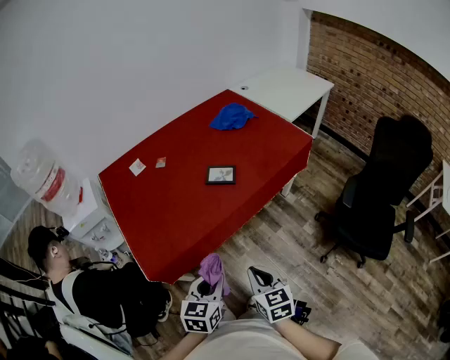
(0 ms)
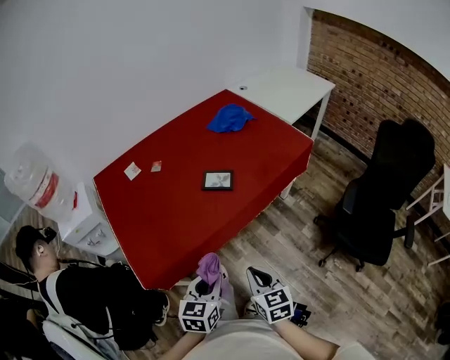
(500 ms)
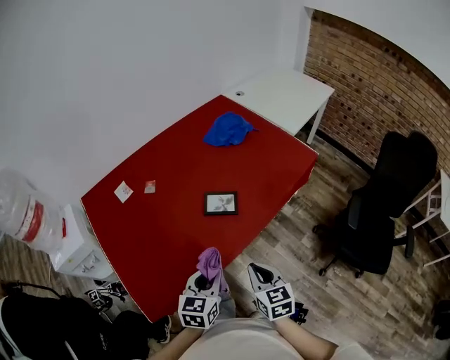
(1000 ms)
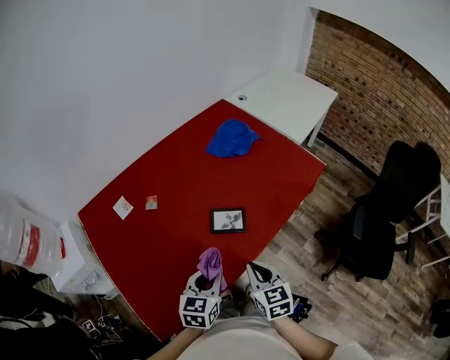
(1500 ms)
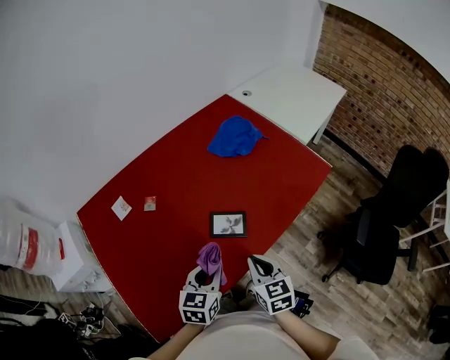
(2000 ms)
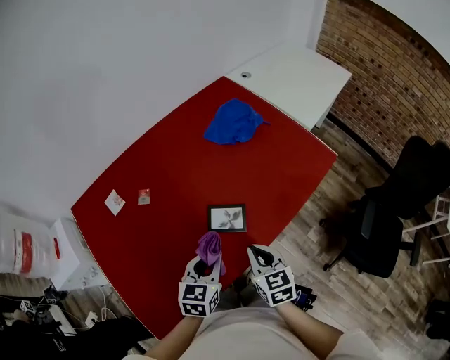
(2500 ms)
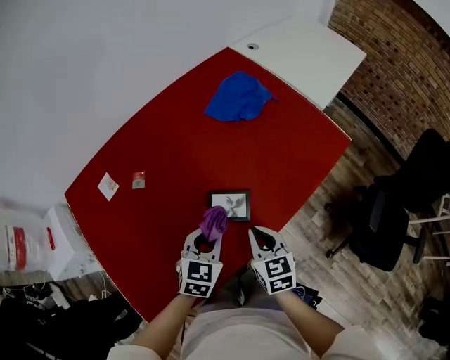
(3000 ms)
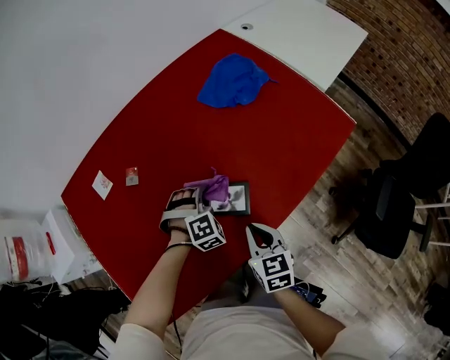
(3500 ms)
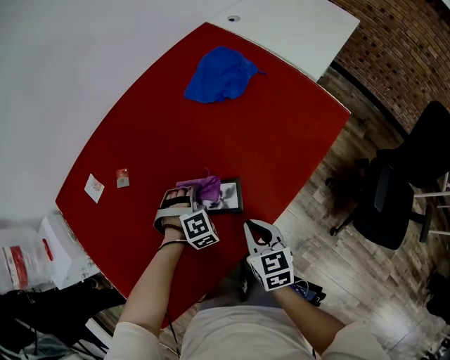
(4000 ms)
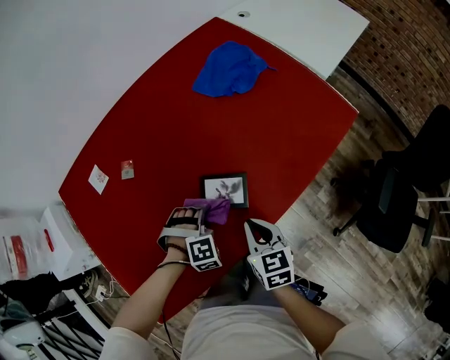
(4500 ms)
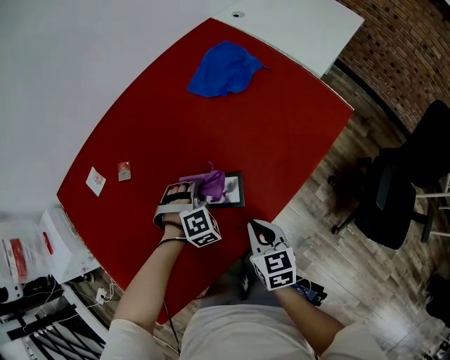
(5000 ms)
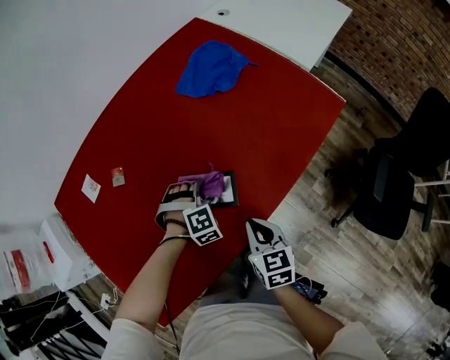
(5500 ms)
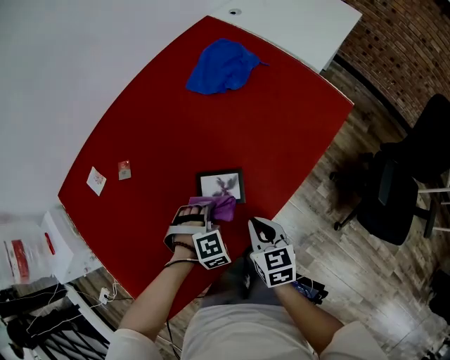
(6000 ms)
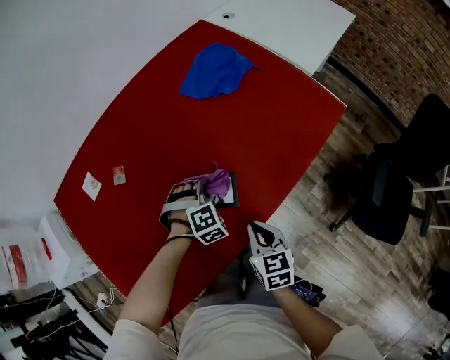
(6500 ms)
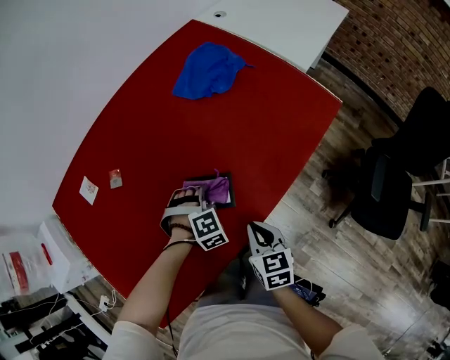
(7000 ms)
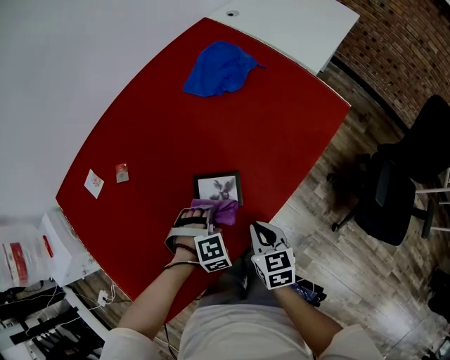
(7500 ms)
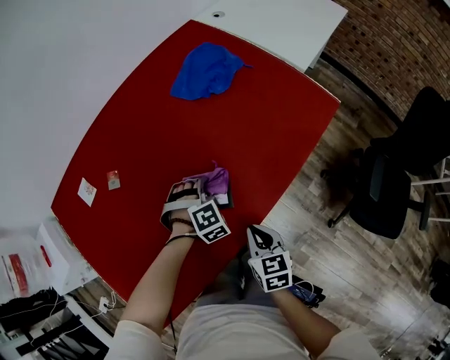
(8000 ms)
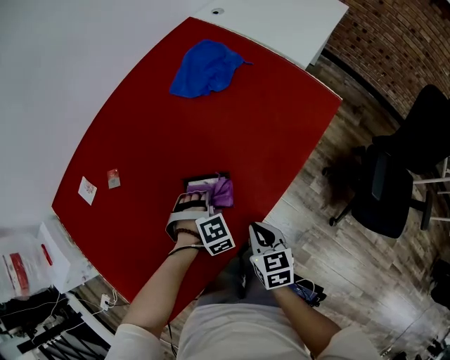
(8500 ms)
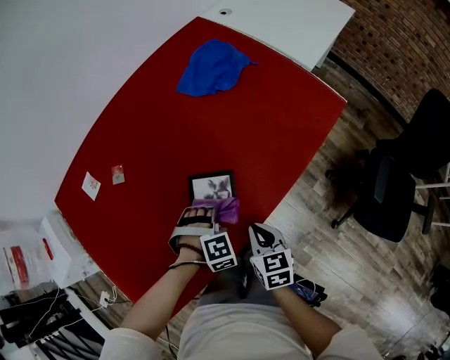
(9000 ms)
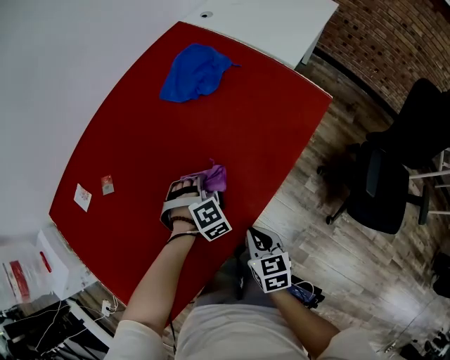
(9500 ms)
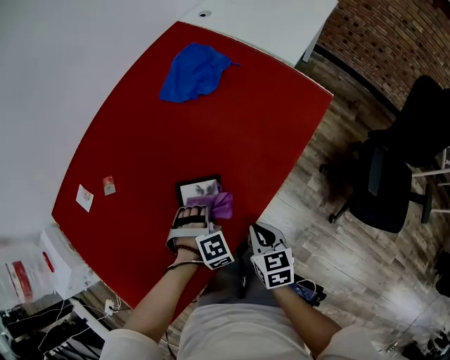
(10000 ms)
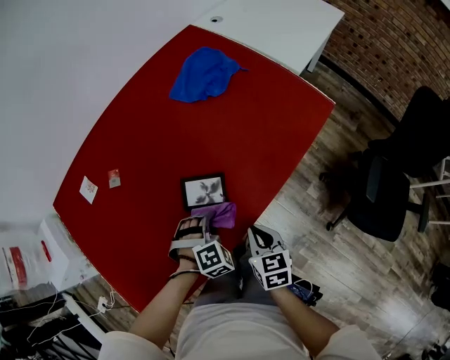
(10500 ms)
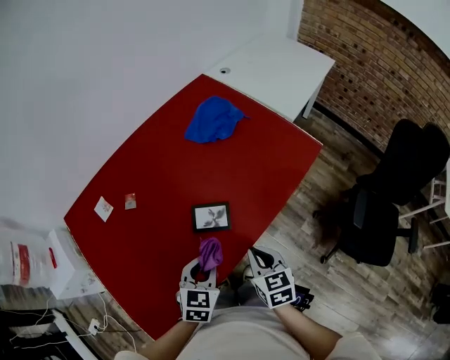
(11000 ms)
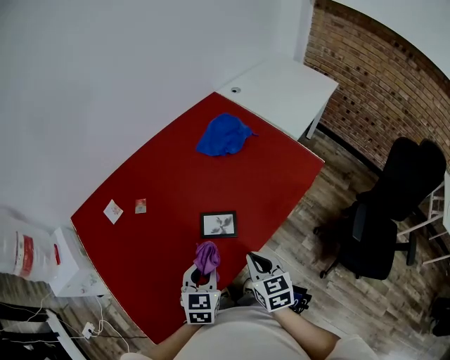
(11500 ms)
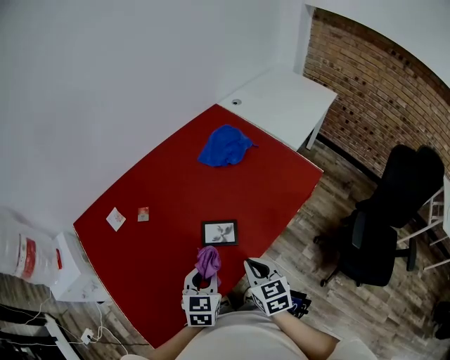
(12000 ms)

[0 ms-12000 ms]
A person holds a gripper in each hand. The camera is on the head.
0 ms to 2000 ms: The grippers both shift forward by some 35 cm.
2000 ms to 4000 ms: The left gripper heads forward and downward, covering approximately 25 cm, and rotates around the line of its fingers by about 80 degrees, clockwise from behind. The right gripper is displaced downward and forward by some 15 cm.
4000 ms to 6000 ms: The left gripper goes forward and backward, some 10 cm each way, reversing 2 times.
6000 ms to 8000 ms: The left gripper swings forward and backward, approximately 10 cm each way, with 2 reversals.
8000 ms to 10000 ms: The left gripper goes forward and backward, some 10 cm each way, reversing 2 times.
10000 ms to 12000 ms: The right gripper travels upward and to the left by about 15 cm. Meanwhile the left gripper heads upward, backward and to the left, covering roughly 25 cm, and twists roughly 80 degrees counterclockwise, seen from behind.

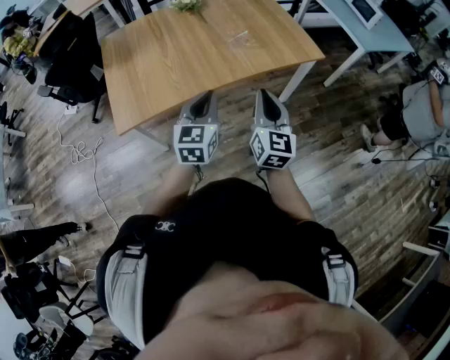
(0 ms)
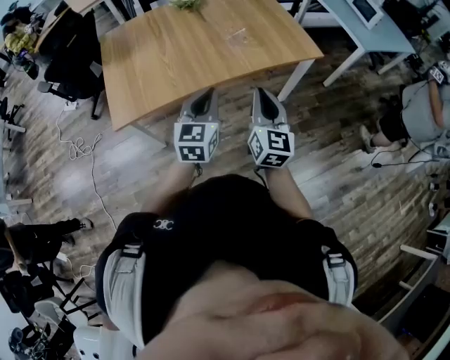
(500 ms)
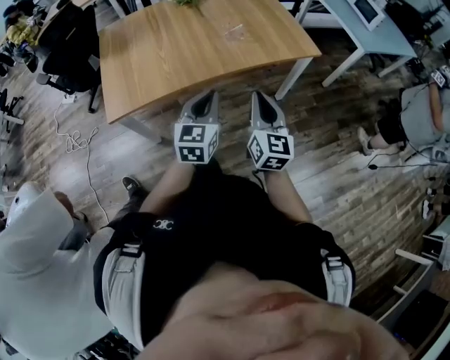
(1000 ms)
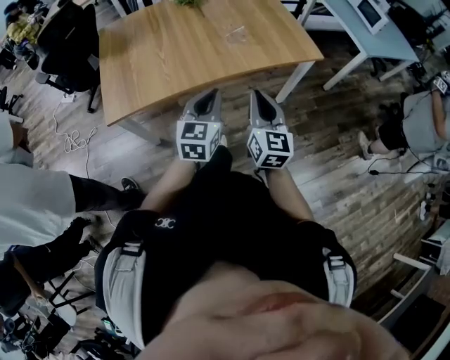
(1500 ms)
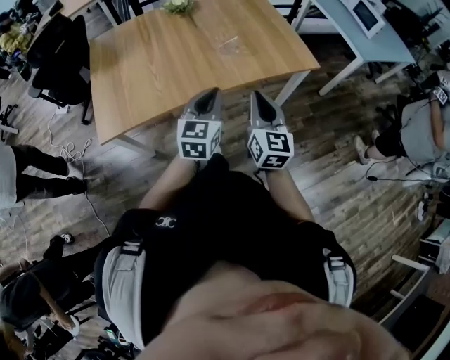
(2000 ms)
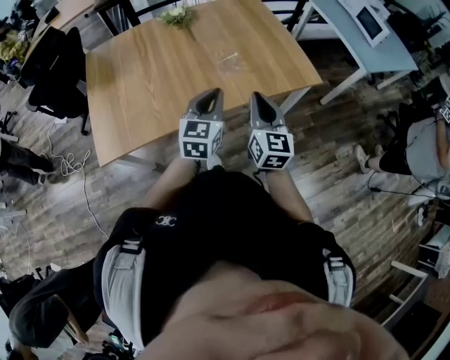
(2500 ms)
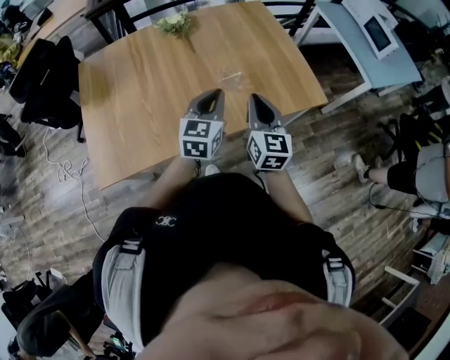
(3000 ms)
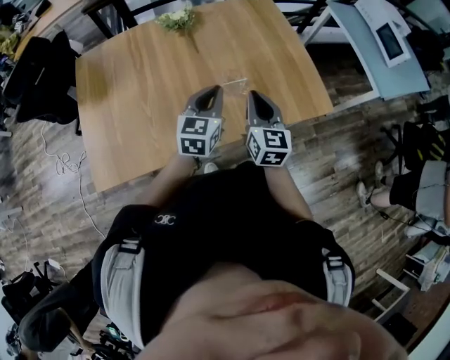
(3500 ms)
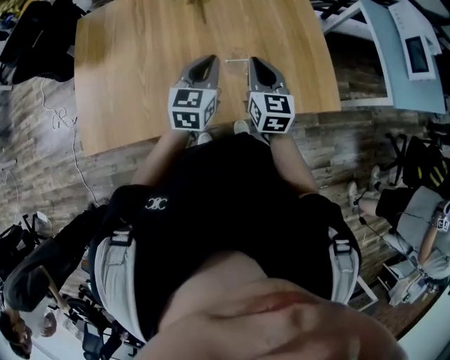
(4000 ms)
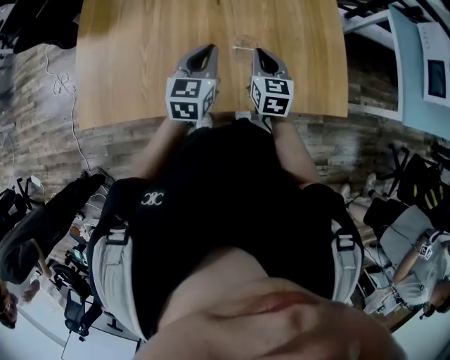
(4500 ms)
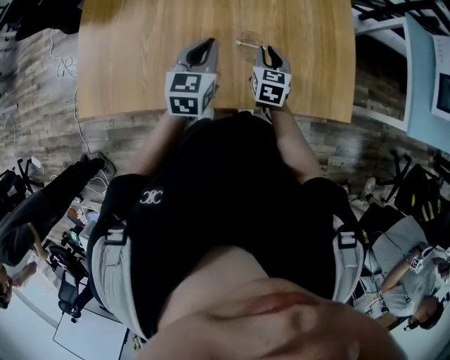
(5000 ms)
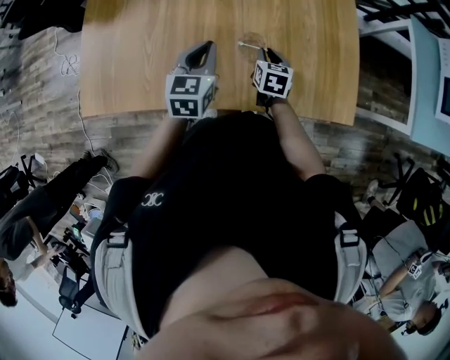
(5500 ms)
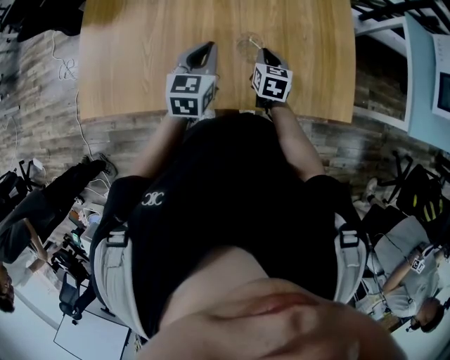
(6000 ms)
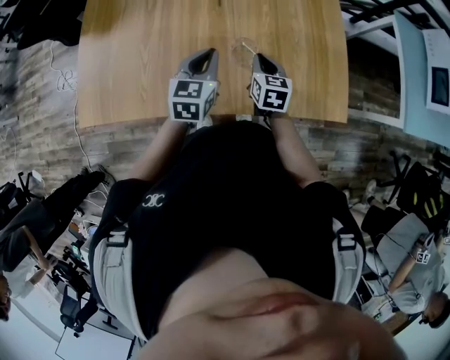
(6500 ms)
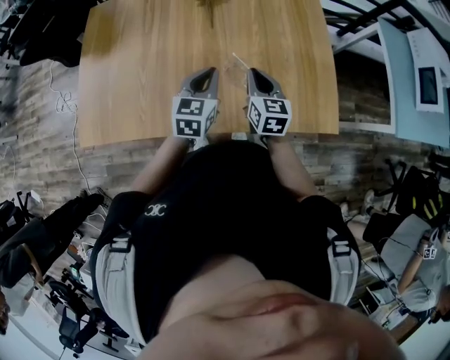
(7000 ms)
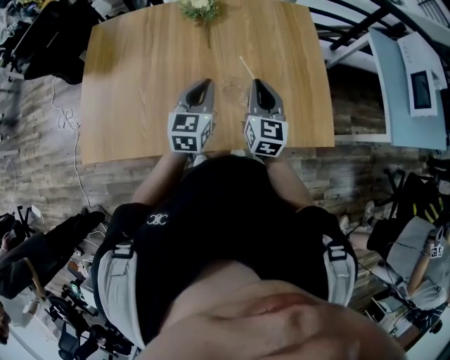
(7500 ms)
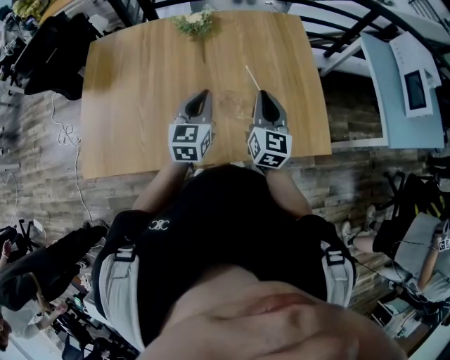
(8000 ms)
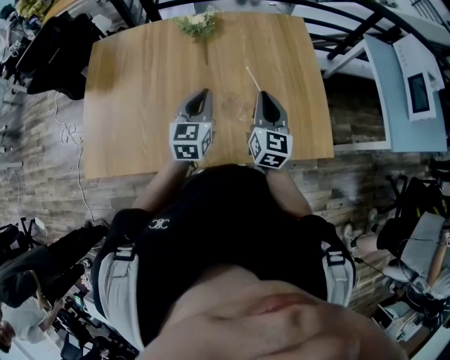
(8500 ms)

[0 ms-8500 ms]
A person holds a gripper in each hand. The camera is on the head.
0 ms to 2000 ms: The right gripper is displaced forward by approximately 10 cm. The left gripper shifts some 10 cm forward and to the right.
2000 ms to 4000 ms: Both grippers travel together forward, some 35 cm.
4000 ms to 6500 ms: The left gripper changes place by some 5 cm. Meanwhile the right gripper is displaced downward by about 15 cm.
6500 ms to 8500 ms: The left gripper changes place by some 5 cm, while the right gripper goes some 15 cm upward, and swivels about 30 degrees.

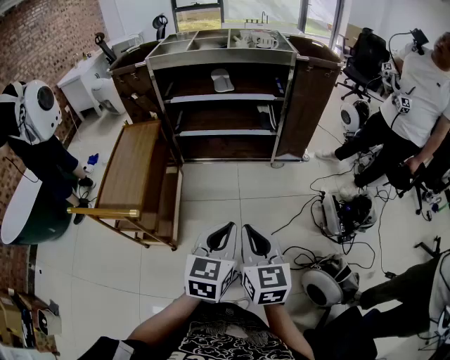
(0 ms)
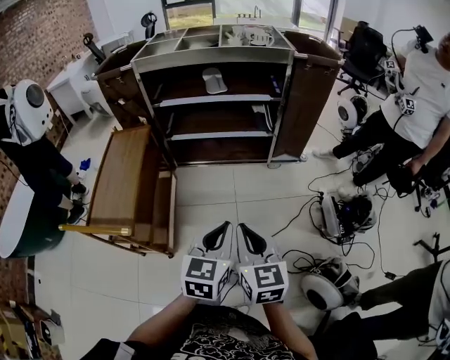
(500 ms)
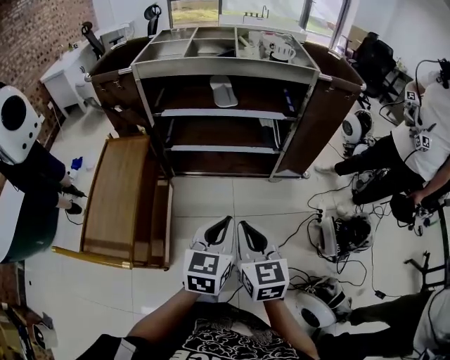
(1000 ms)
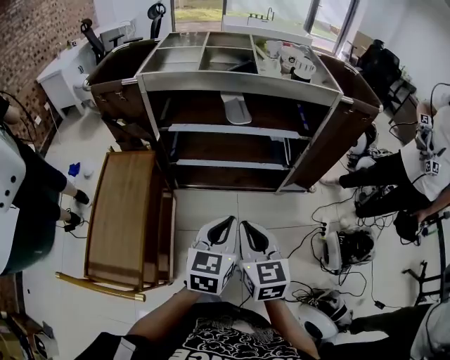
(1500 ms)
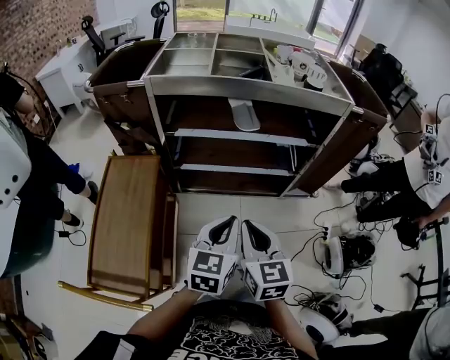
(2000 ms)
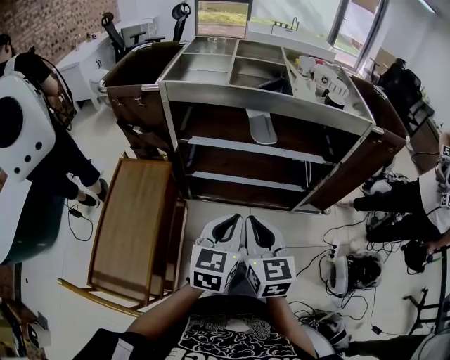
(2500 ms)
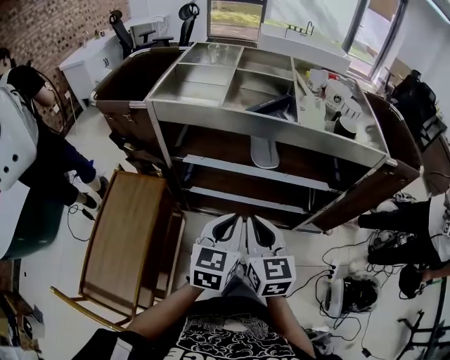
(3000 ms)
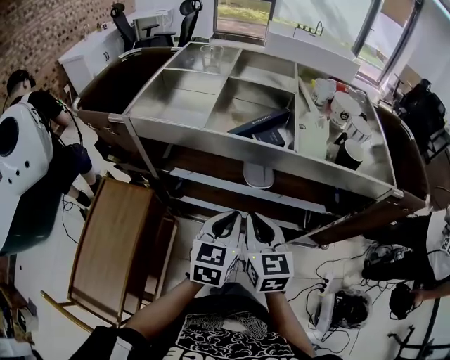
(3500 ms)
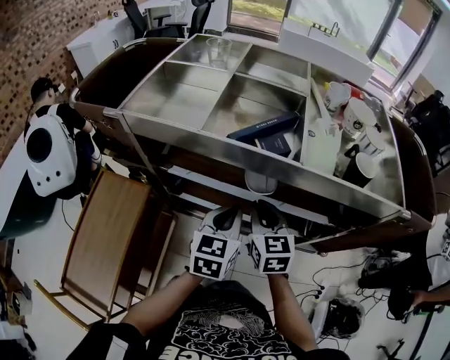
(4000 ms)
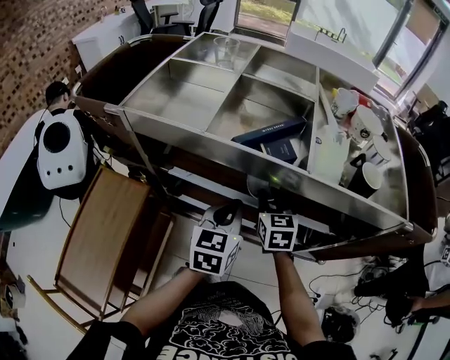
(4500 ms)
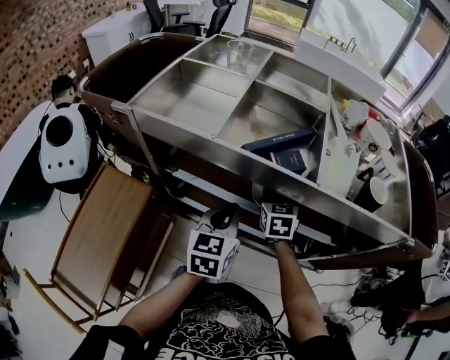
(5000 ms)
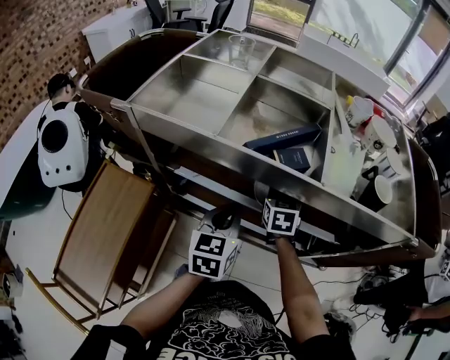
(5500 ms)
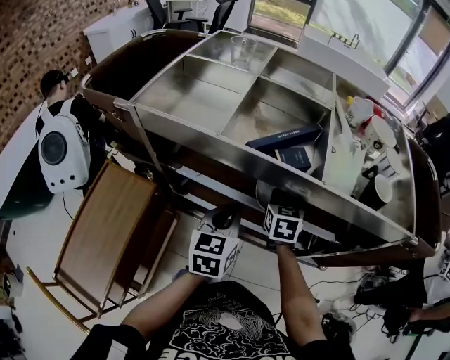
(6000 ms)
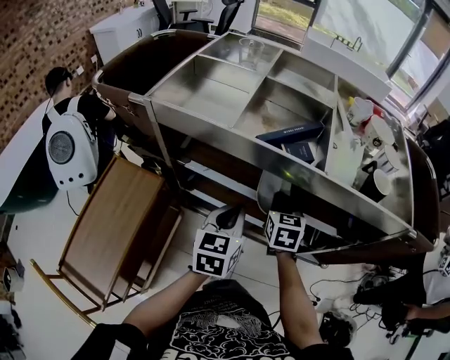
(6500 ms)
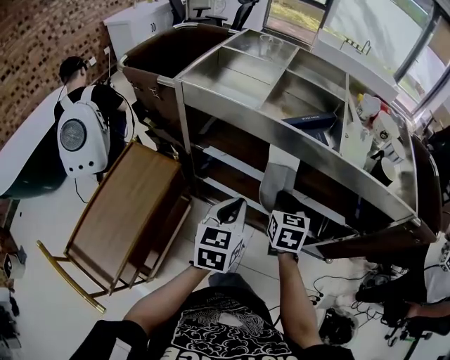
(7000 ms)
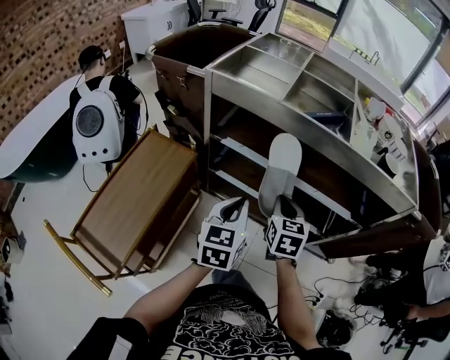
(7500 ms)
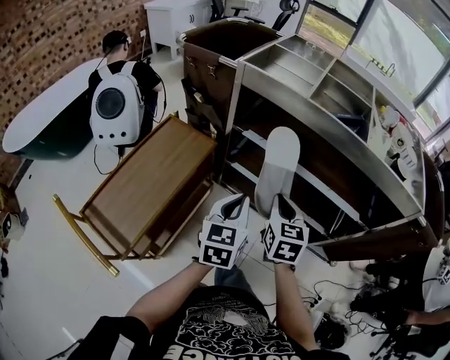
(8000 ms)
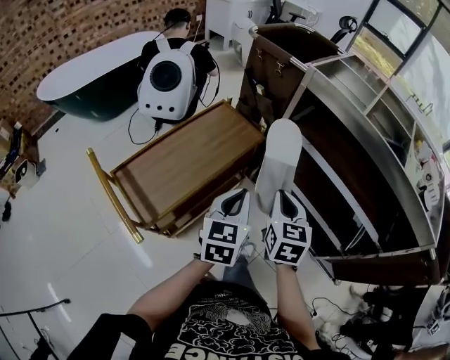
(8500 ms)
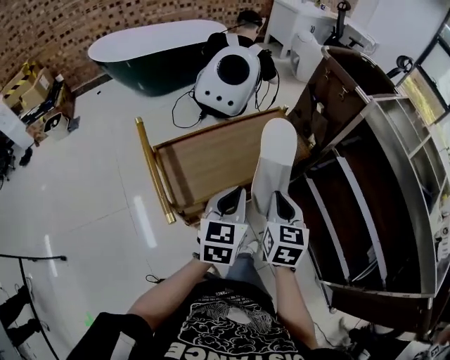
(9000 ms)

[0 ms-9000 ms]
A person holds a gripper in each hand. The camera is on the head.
0 ms to 2000 ms: The pair of grippers is taken forward and to the left, approximately 40 cm.
2000 ms to 4500 ms: Both grippers travel together forward, approximately 40 cm. The right gripper opens up.
4500 ms to 7000 ms: The left gripper goes about 10 cm backward and to the left. The right gripper heads backward, covering roughly 10 cm.
7000 ms to 9000 ms: The two grippers travel together, some 40 cm. The left gripper swivels some 50 degrees; the right gripper turns by some 40 degrees.
